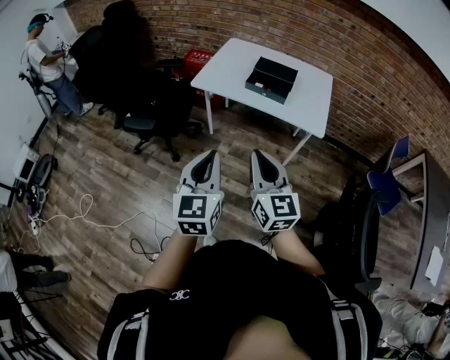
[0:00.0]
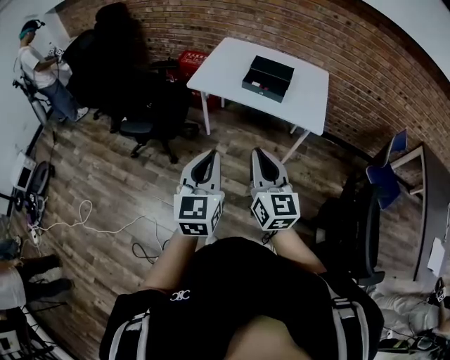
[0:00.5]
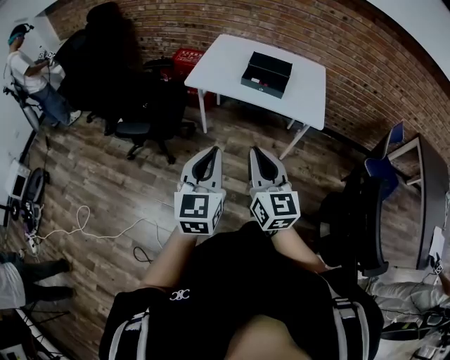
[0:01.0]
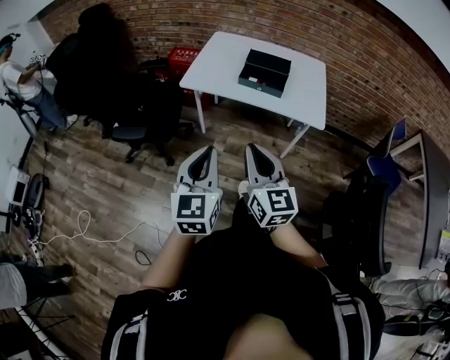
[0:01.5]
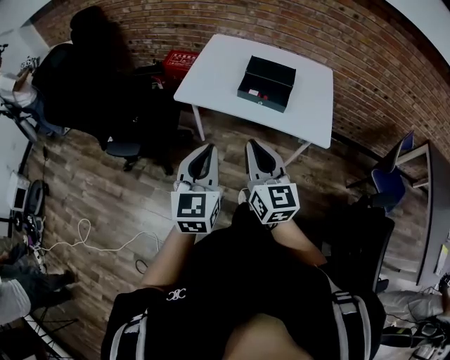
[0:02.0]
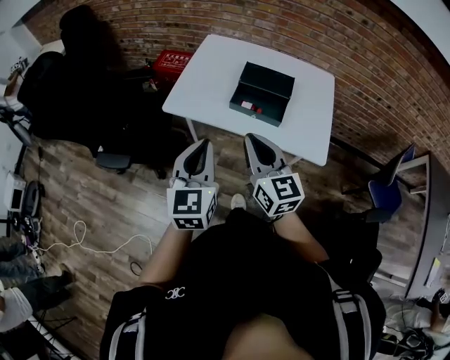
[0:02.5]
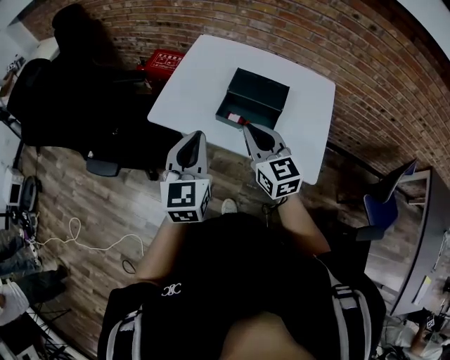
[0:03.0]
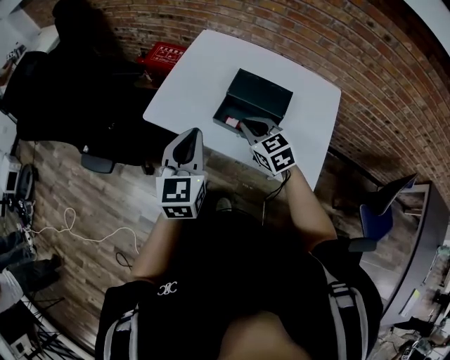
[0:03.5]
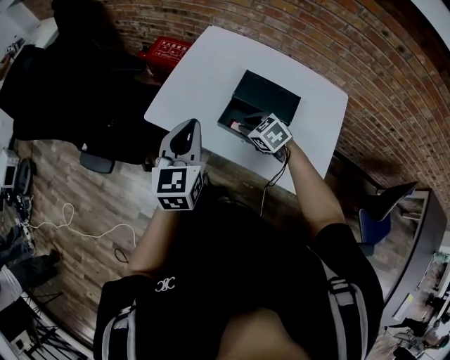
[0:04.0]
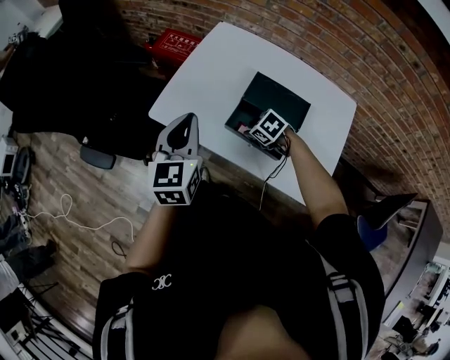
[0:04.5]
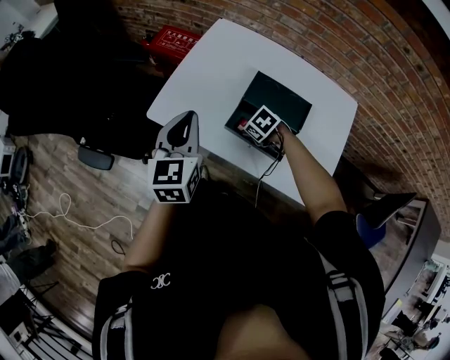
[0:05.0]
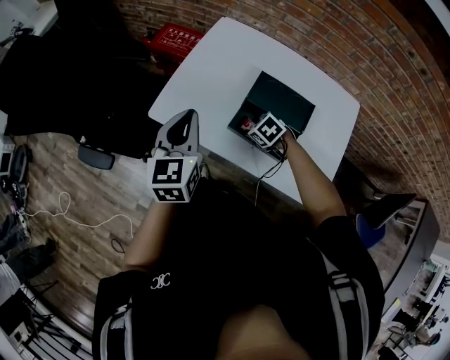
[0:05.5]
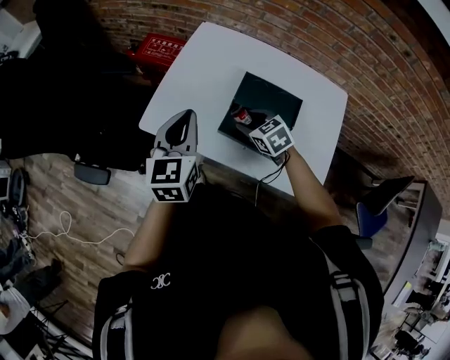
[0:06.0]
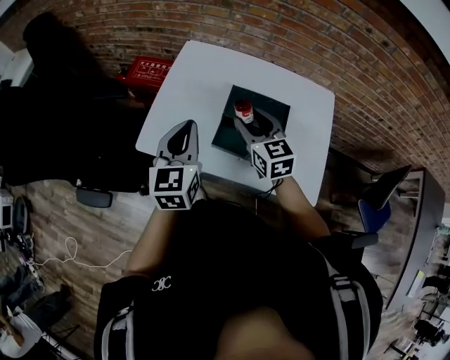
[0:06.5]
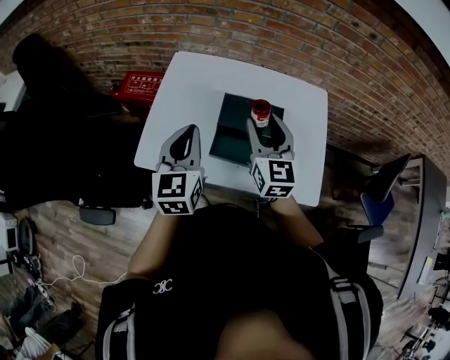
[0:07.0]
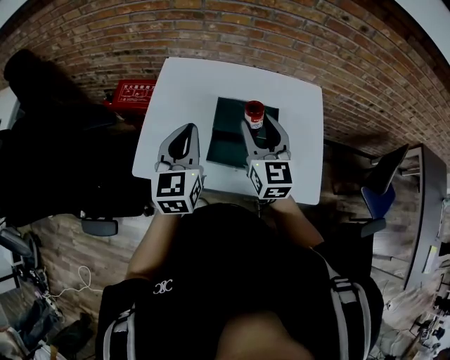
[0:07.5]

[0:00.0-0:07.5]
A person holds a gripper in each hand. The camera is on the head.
0:00.0 to 0:02.0: The two grippers go about 20 cm forward.
0:02.0 to 0:04.0: The right gripper ends up some 40 cm from where it was, and tilts its fingers approximately 50 degrees downward, while the left gripper shifts by some 30 cm.
0:04.0 to 0:05.5: The right gripper shifts about 10 cm downward, and opens; the left gripper shifts approximately 5 cm forward.
0:05.5 to 0:07.5: The left gripper changes place by some 10 cm; the right gripper goes approximately 30 cm upward, and tips its fingers upward by about 60 degrees.

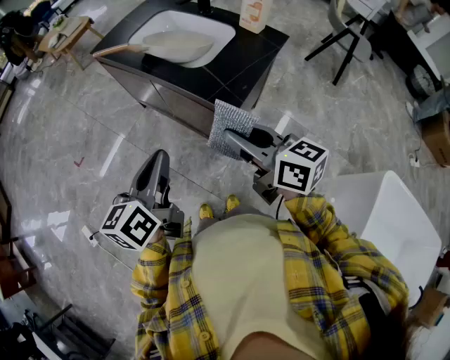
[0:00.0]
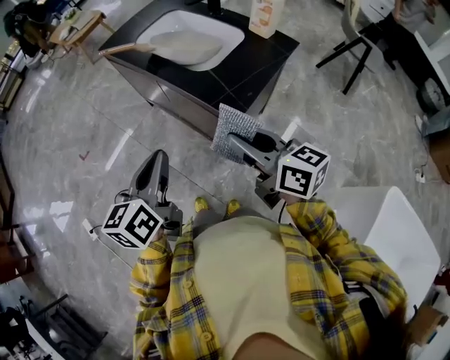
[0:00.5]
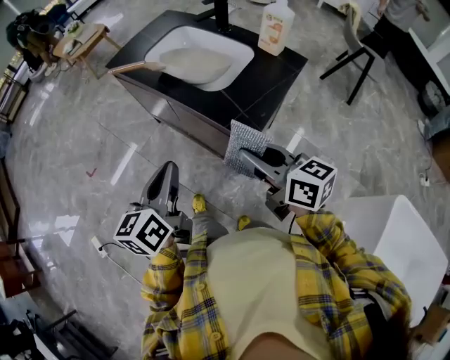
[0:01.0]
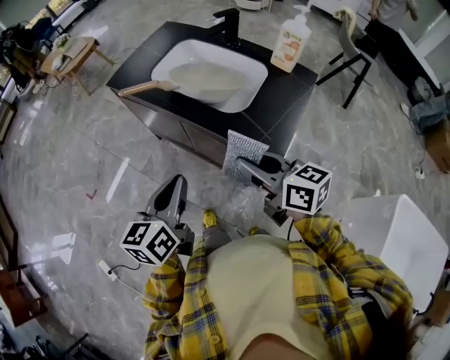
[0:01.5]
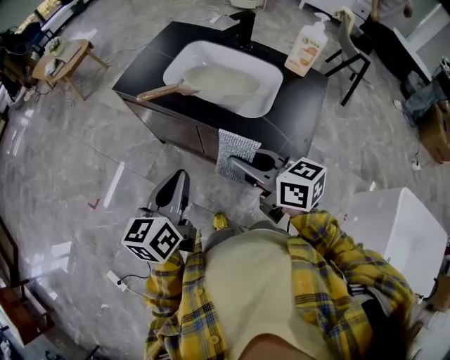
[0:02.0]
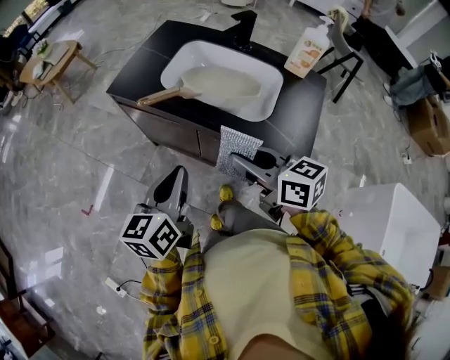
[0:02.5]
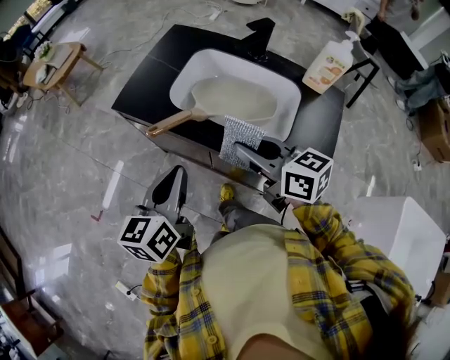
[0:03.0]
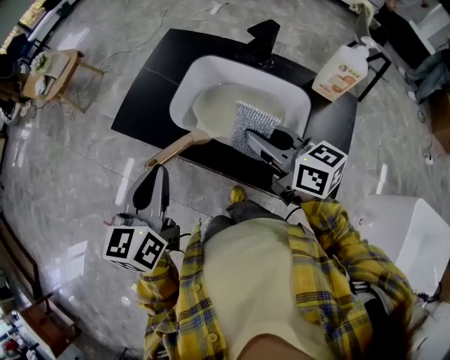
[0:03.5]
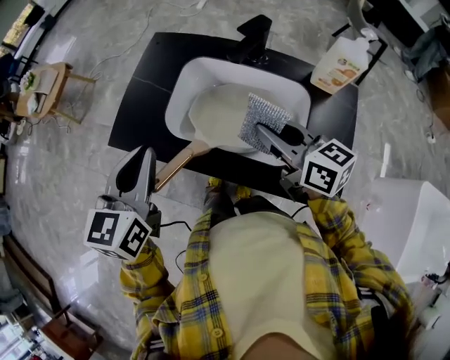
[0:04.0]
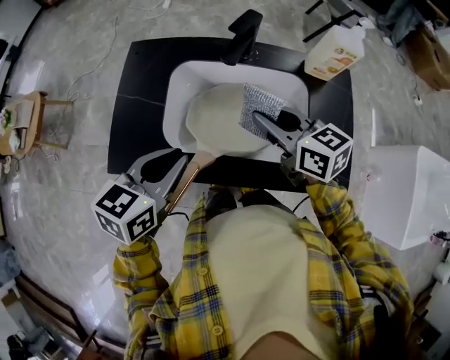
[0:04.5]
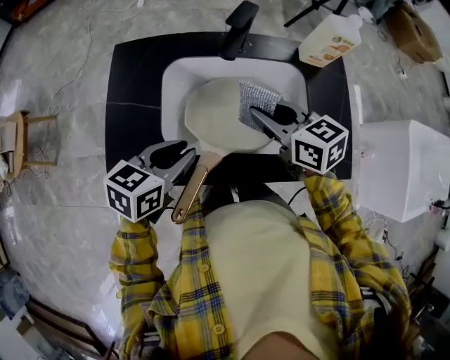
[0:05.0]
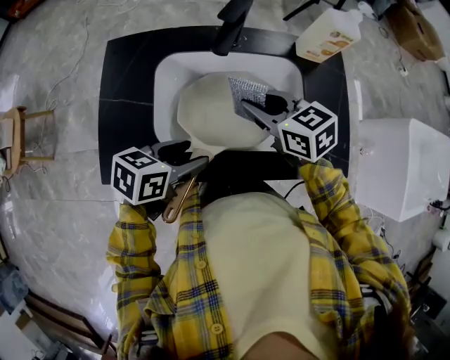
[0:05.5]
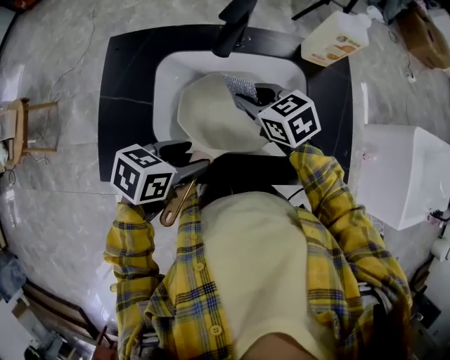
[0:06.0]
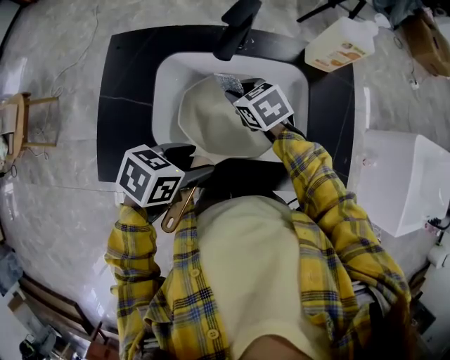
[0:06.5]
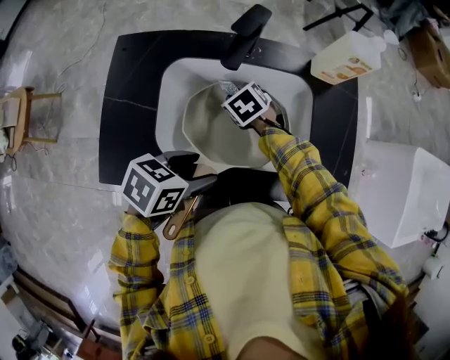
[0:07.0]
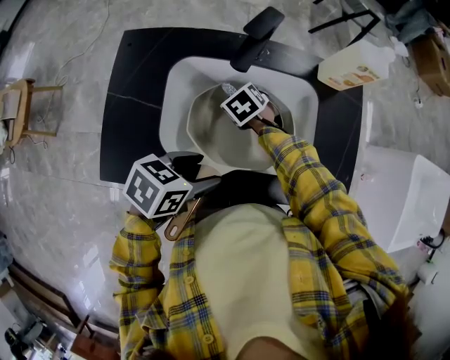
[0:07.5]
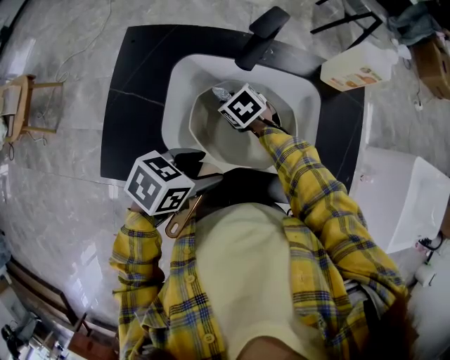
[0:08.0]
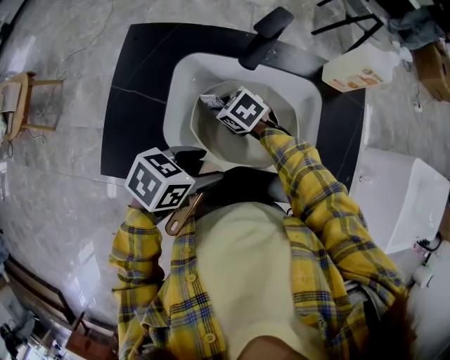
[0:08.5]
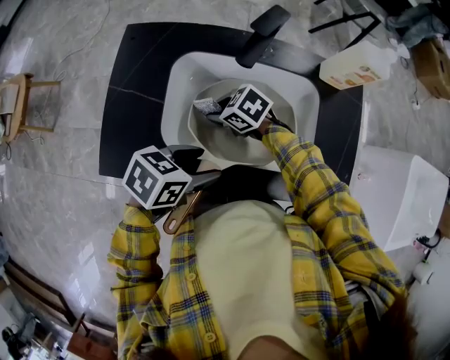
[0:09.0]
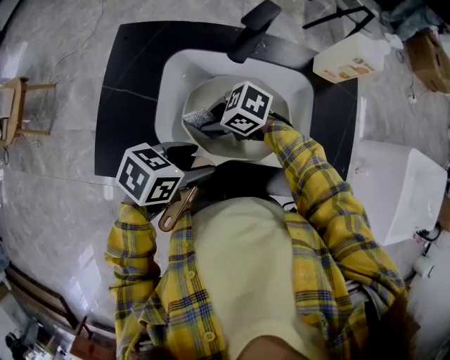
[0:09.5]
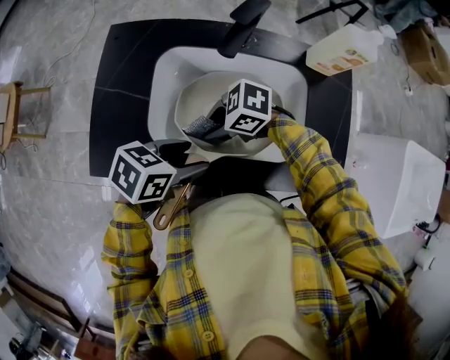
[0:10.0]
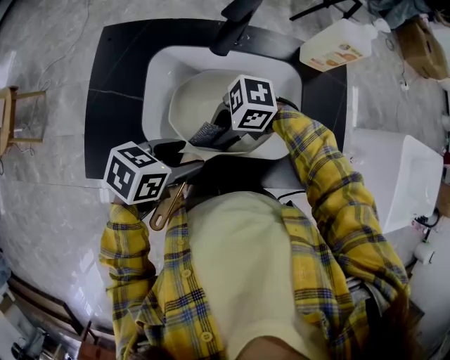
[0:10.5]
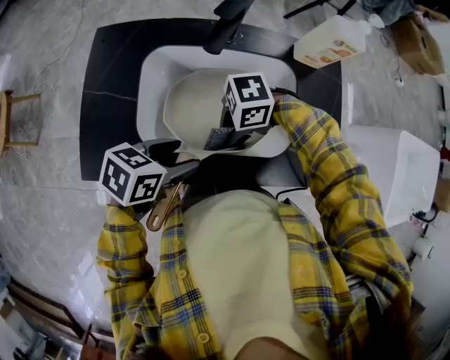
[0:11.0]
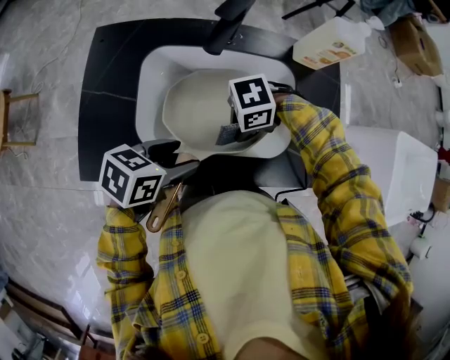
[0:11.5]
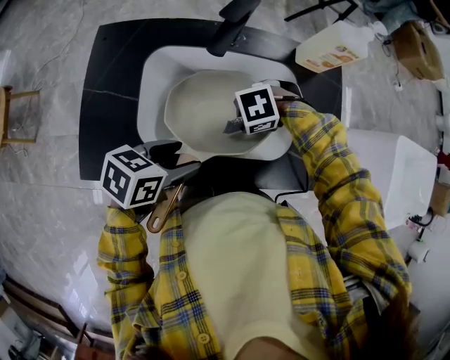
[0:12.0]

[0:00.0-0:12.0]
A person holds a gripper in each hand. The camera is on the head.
0:00.0 to 0:02.0: Both grippers travel together forward and to the left, roughly 25 cm.
0:02.0 to 0:04.0: Both grippers move forward, approximately 30 cm. The left gripper rotates some 30 degrees.
0:04.0 to 0:06.0: The two grippers go some 15 cm downward. The left gripper rotates roughly 60 degrees, and opens its fingers. The right gripper changes its angle by roughly 30 degrees.
0:06.0 to 0:08.0: The right gripper travels downward by roughly 15 cm, and rotates some 30 degrees.
0:08.0 to 0:10.0: The right gripper shifts by about 15 cm, and swivels about 50 degrees.
0:10.0 to 0:12.0: The right gripper shifts by some 15 cm, and swivels approximately 40 degrees.

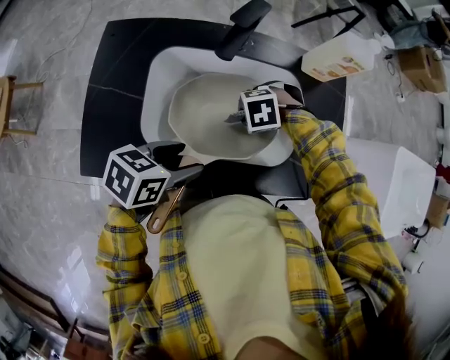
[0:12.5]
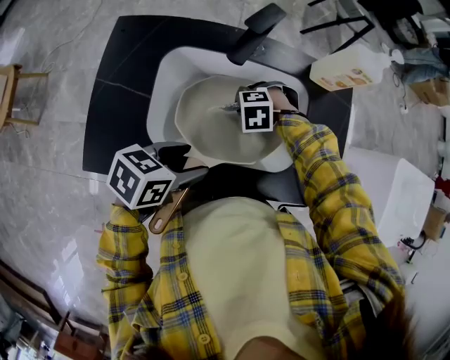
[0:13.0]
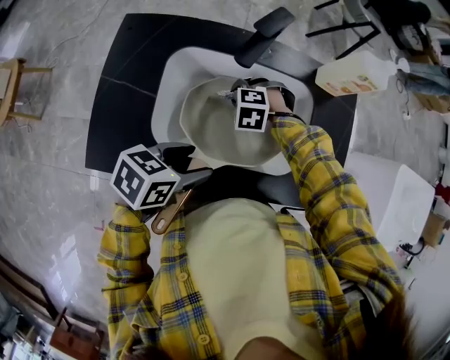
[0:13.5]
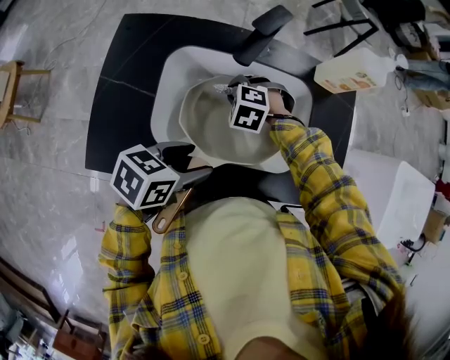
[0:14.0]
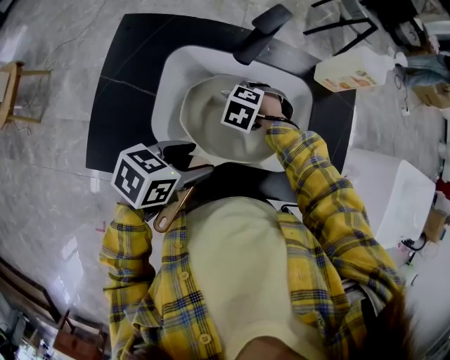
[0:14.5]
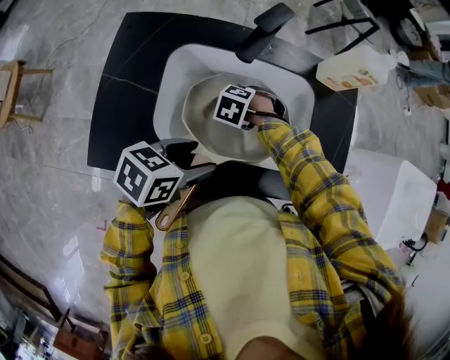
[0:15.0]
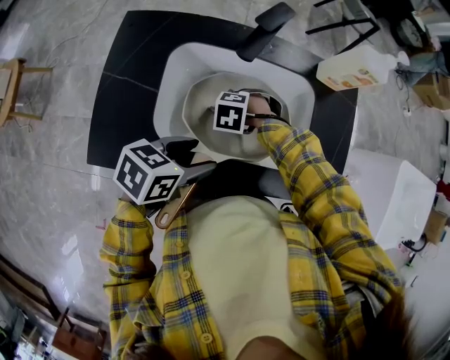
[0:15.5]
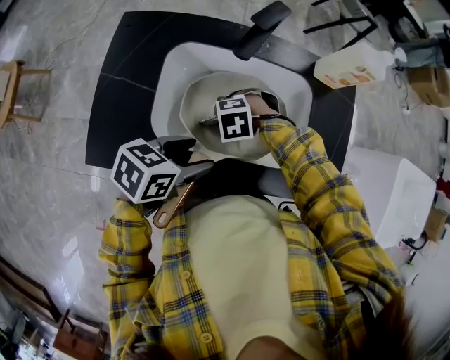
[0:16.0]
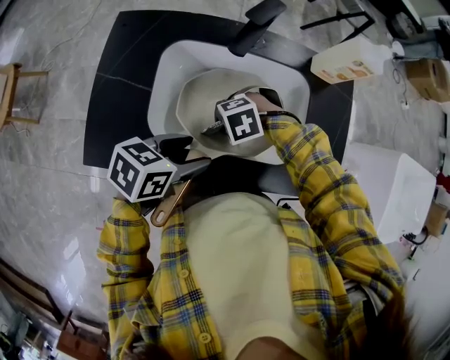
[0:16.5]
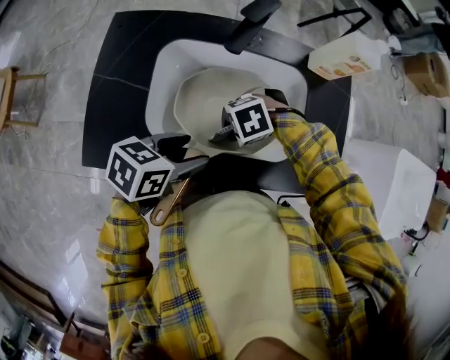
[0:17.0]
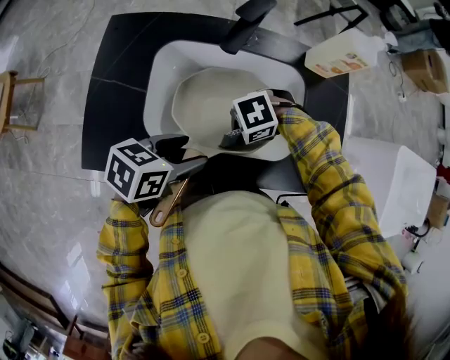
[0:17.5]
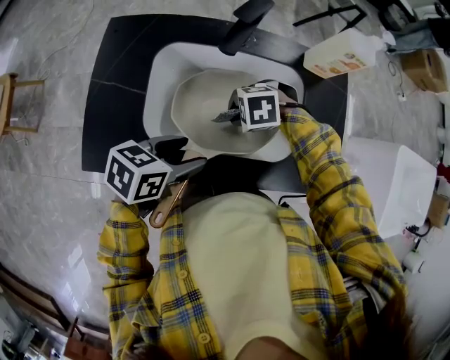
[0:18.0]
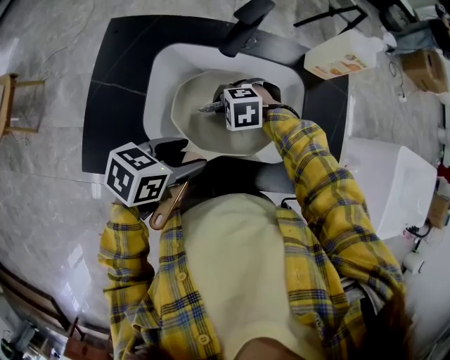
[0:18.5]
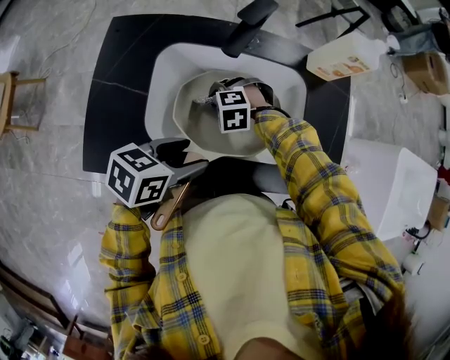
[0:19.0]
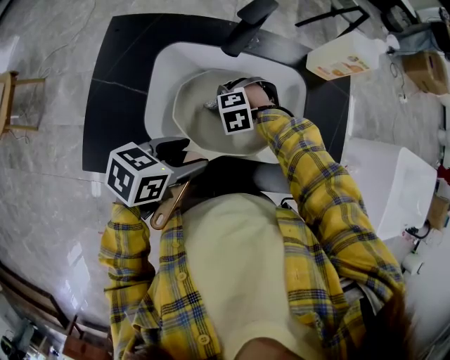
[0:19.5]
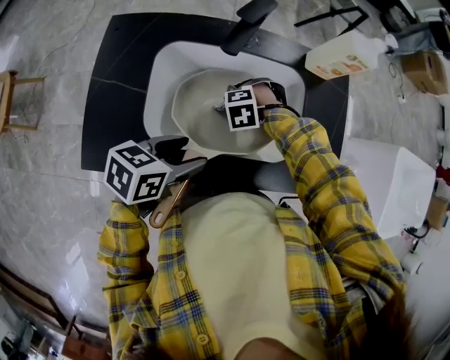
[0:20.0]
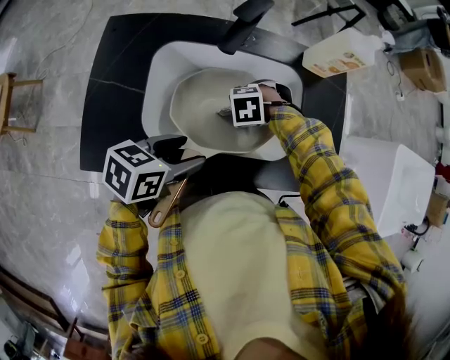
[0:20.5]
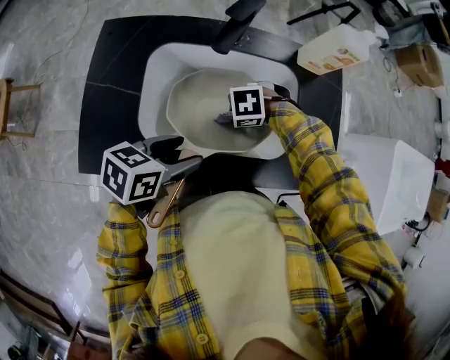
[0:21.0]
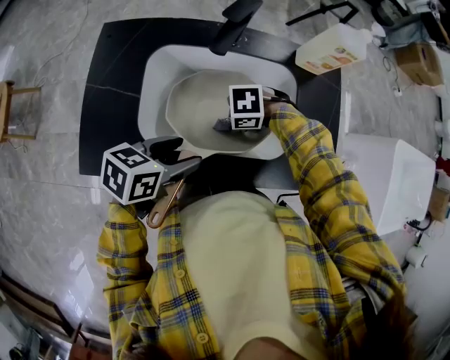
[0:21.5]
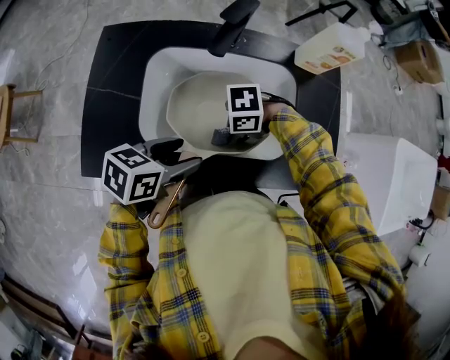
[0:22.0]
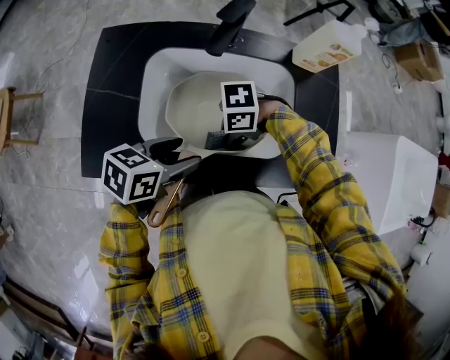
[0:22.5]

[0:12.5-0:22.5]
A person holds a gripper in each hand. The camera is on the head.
0:12.5 to 0:14.5: The right gripper changes place by about 10 cm, and changes its angle by approximately 30 degrees.
0:14.5 to 0:16.5: The right gripper moves about 15 cm, and swivels some 40 degrees.
0:16.5 to 0:18.5: The right gripper moves approximately 5 cm.
0:18.5 to 0:20.5: The right gripper changes place by roughly 5 cm.
0:20.5 to 0:22.5: The right gripper changes place by roughly 10 cm, and angles its fingers upward, by approximately 30 degrees.
